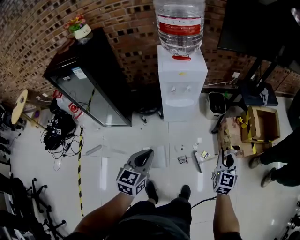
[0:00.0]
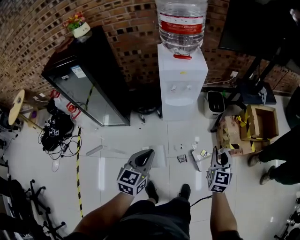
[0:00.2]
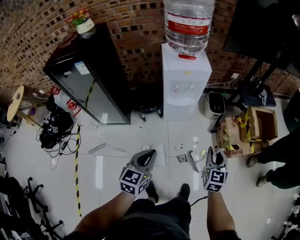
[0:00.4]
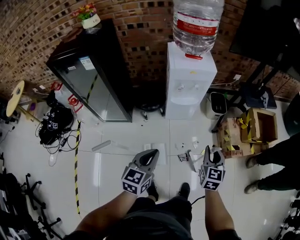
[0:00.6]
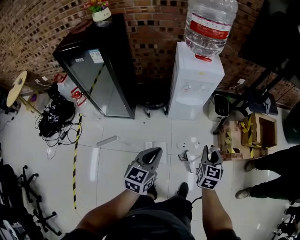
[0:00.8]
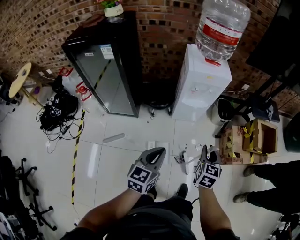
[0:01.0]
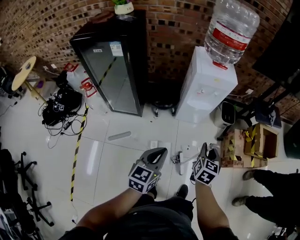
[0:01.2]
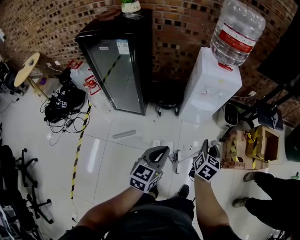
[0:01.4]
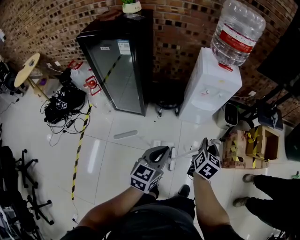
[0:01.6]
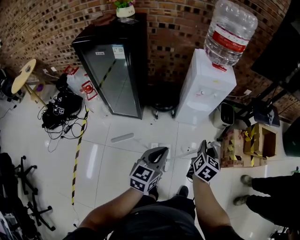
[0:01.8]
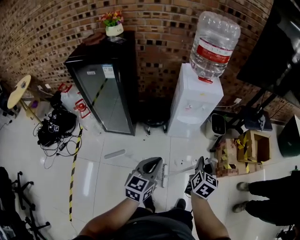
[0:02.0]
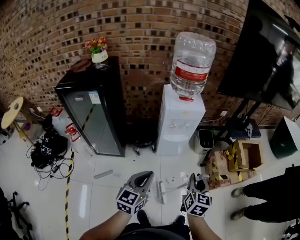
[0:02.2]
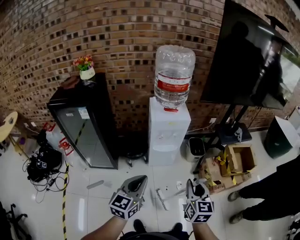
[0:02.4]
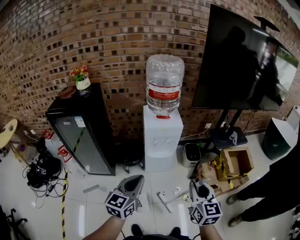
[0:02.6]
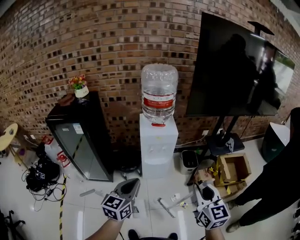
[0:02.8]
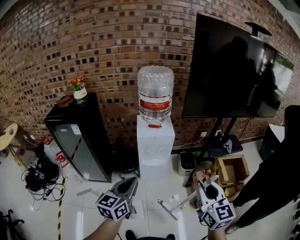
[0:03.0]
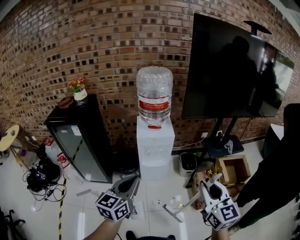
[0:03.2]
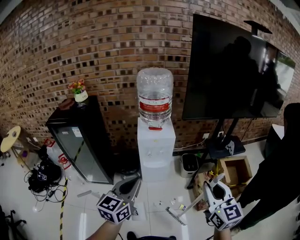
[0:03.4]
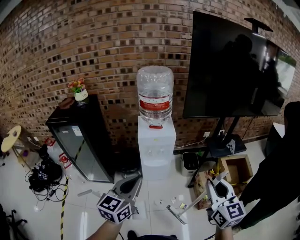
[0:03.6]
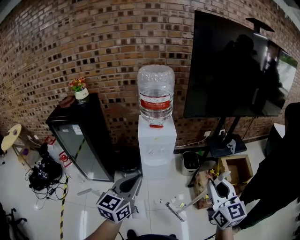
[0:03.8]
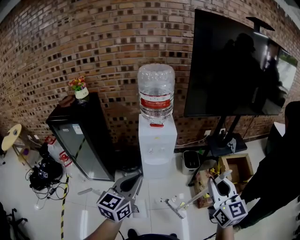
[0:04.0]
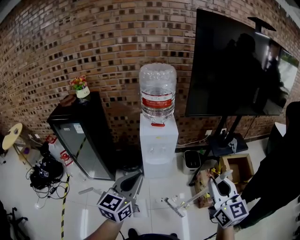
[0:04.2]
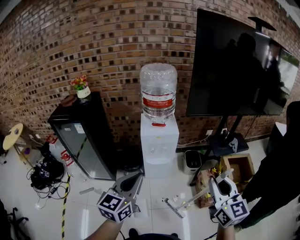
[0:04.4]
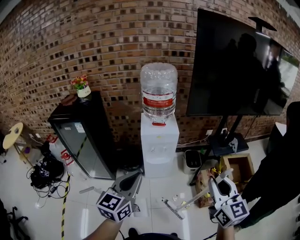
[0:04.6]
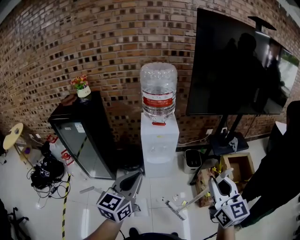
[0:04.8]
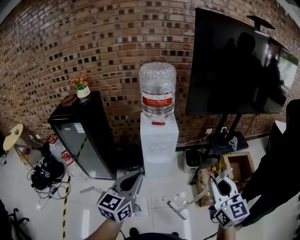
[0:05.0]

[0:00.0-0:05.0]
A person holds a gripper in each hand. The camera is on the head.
0:00.0 to 0:01.6: The right gripper shifts some 30 cm to the left, and rotates about 20 degrees; the left gripper is displaced to the left and backward by roughly 15 cm.
0:01.6 to 0:03.4: Both grippers move upward and to the right, roughly 40 cm. The right gripper swivels approximately 40 degrees.
0:03.4 to 0:05.0: There are only small adjustments of the grippers.

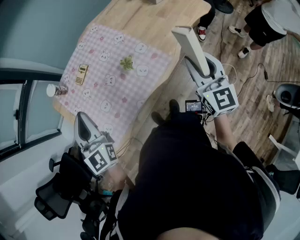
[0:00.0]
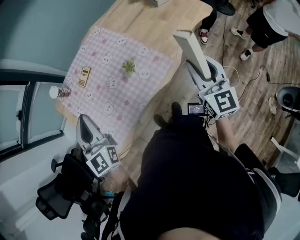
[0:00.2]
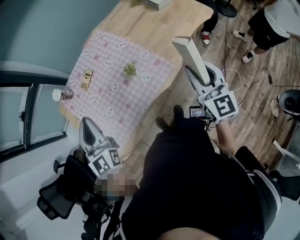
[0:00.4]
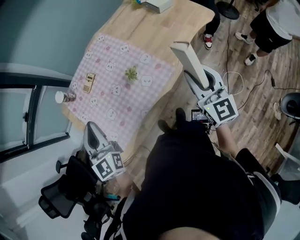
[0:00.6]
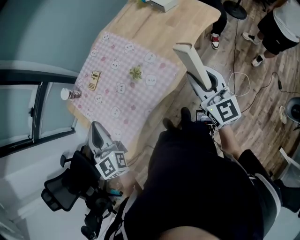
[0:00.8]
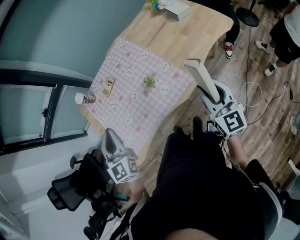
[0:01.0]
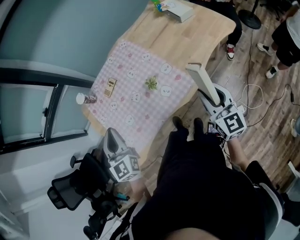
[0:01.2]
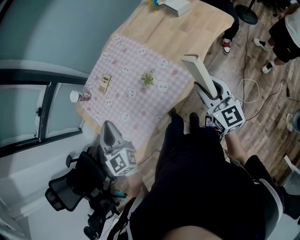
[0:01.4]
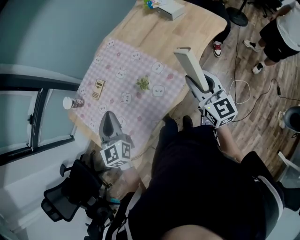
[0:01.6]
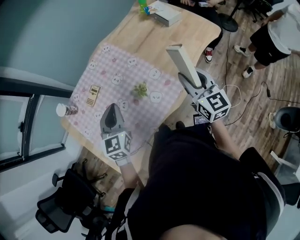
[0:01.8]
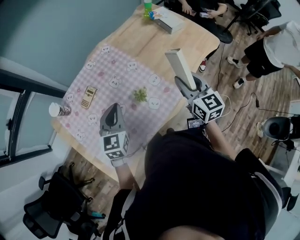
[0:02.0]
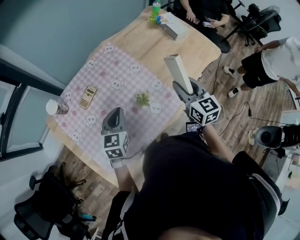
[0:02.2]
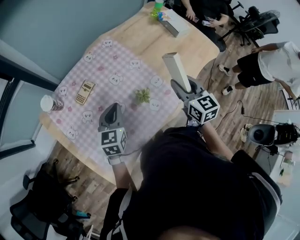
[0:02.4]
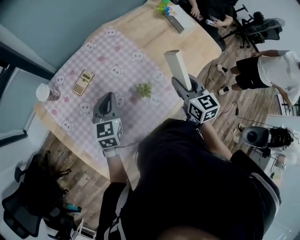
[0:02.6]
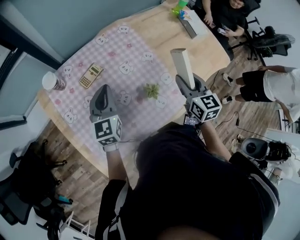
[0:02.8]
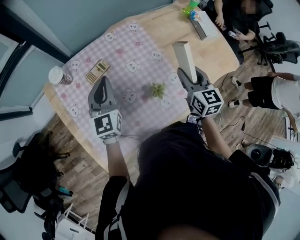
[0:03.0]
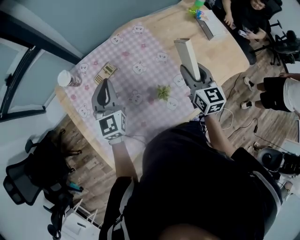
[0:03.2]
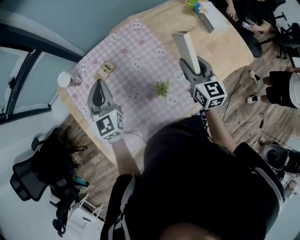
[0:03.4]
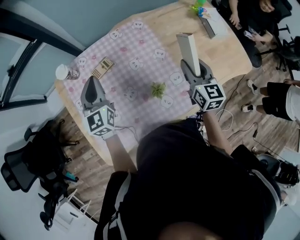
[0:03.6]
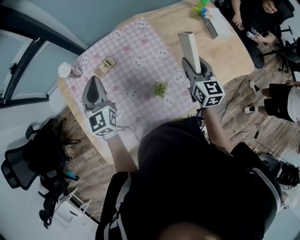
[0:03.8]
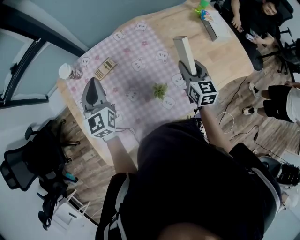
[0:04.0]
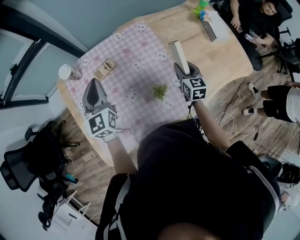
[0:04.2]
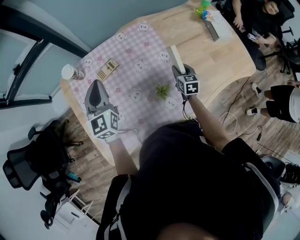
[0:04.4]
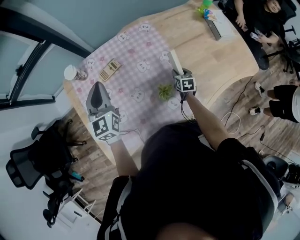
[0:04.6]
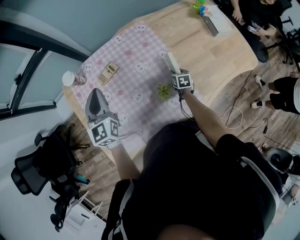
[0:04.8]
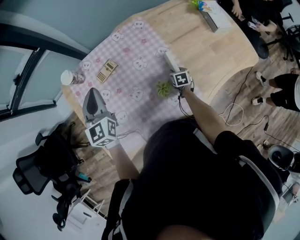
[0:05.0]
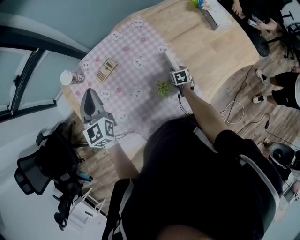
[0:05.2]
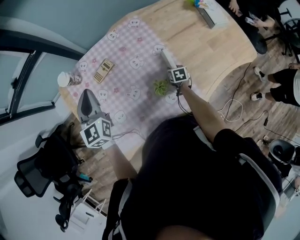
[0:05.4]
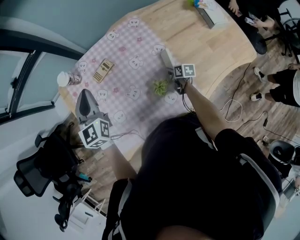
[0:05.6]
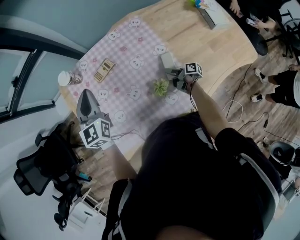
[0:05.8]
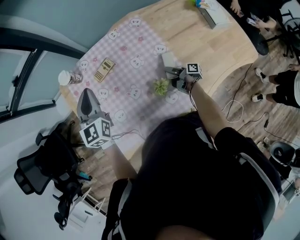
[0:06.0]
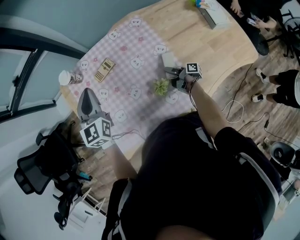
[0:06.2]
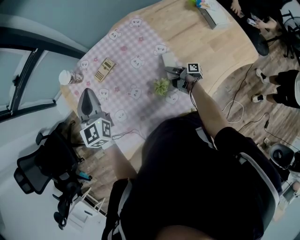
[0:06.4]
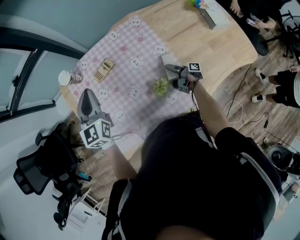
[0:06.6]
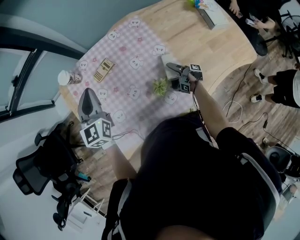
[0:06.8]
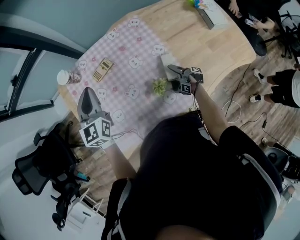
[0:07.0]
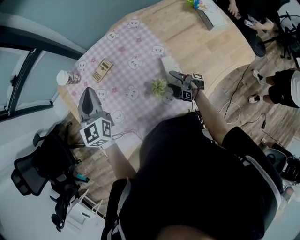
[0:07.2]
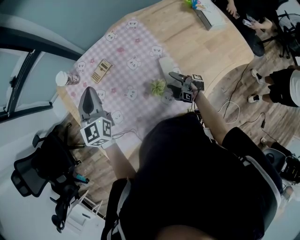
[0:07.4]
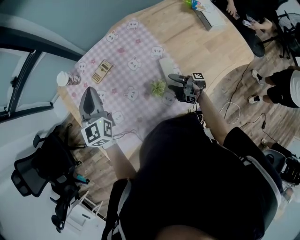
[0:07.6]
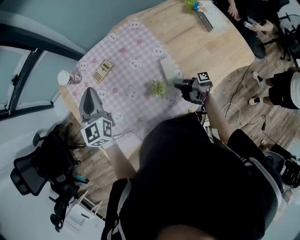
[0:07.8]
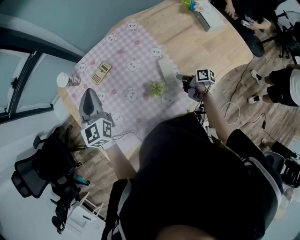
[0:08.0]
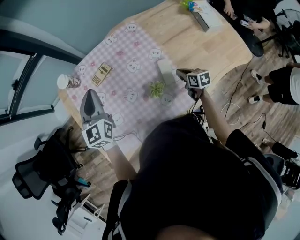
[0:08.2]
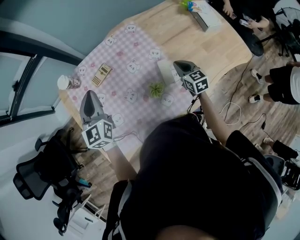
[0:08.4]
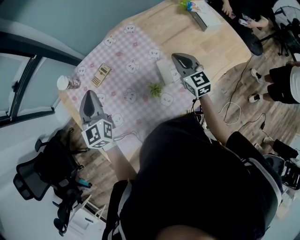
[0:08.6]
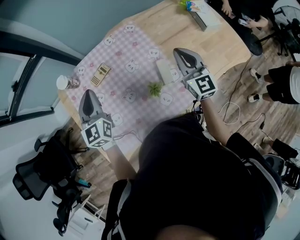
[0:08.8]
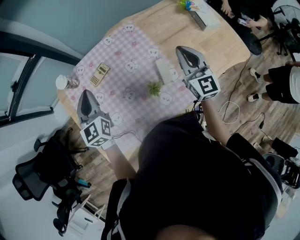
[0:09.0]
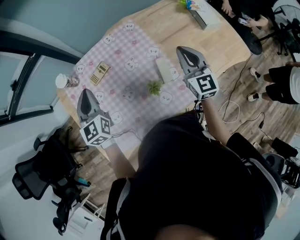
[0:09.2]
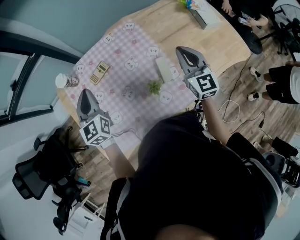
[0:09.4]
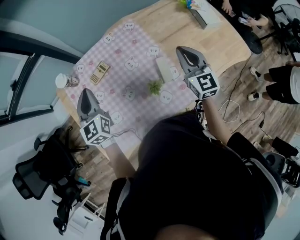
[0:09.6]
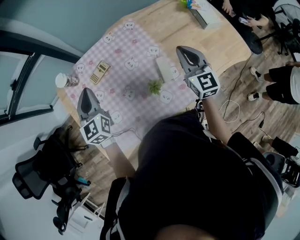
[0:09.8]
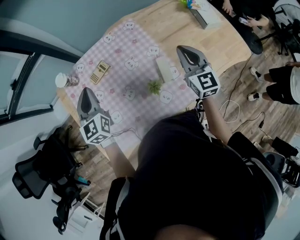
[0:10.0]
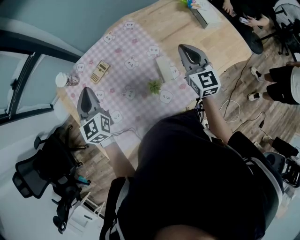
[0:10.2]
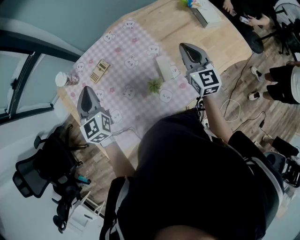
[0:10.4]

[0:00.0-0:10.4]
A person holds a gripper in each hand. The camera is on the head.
0:00.0 to 0:01.4: The right gripper moves about 5 cm. The left gripper changes place by approximately 5 cm.
0:01.4 to 0:03.0: The grippers both shift forward and to the left by approximately 30 cm.
0:03.0 to 0:04.4: The right gripper goes roughly 20 cm downward.
0:04.4 to 0:06.0: The right gripper moves downward, some 10 cm, and twists some 70 degrees clockwise, seen from behind.
0:06.0 to 0:07.4: The right gripper travels backward by roughly 5 cm, turns by roughly 30 degrees, and opens its fingers.
0:07.4 to 0:09.0: The right gripper shifts roughly 35 cm upward, twists roughly 130 degrees counterclockwise, seen from behind, and closes its fingers.
0:09.0 to 0:10.4: The grippers move only a little.

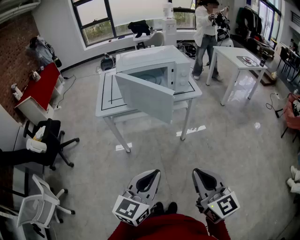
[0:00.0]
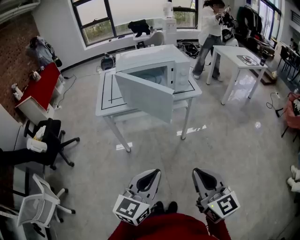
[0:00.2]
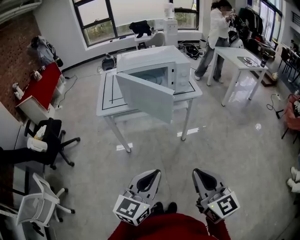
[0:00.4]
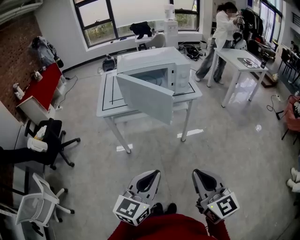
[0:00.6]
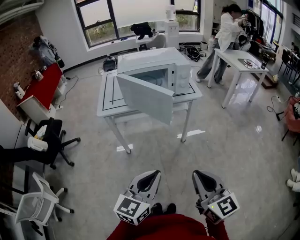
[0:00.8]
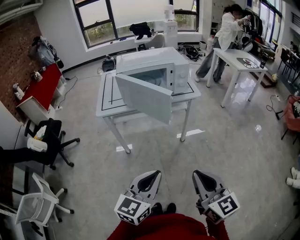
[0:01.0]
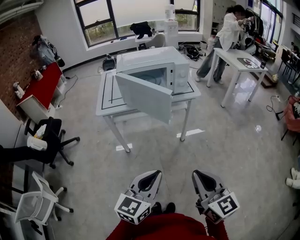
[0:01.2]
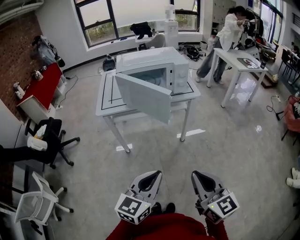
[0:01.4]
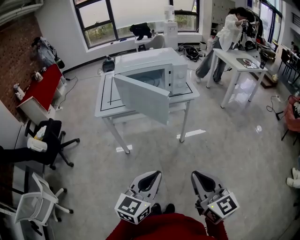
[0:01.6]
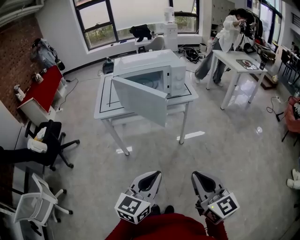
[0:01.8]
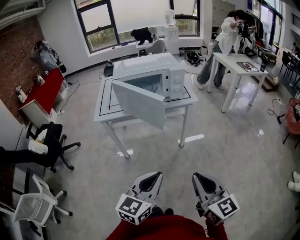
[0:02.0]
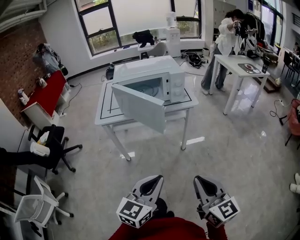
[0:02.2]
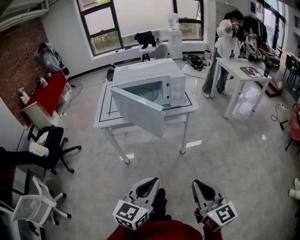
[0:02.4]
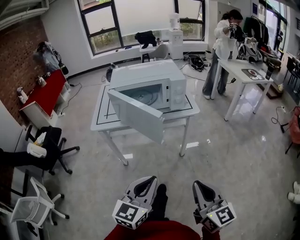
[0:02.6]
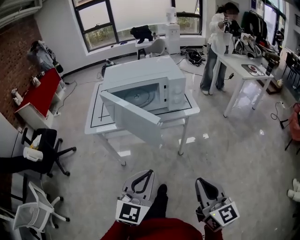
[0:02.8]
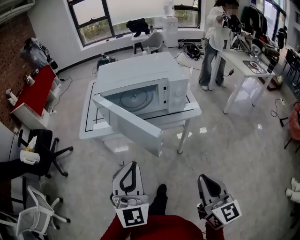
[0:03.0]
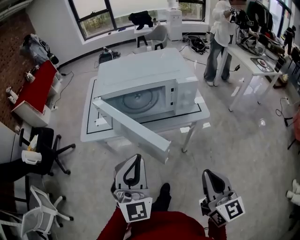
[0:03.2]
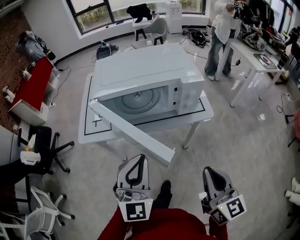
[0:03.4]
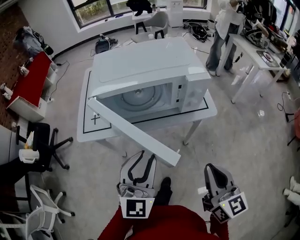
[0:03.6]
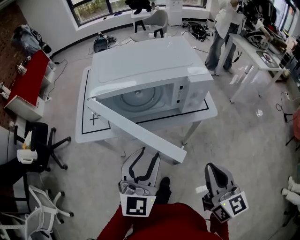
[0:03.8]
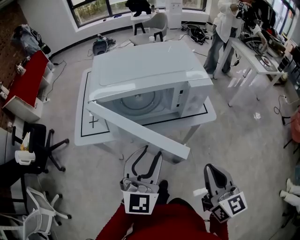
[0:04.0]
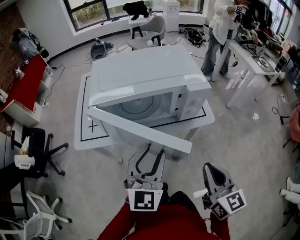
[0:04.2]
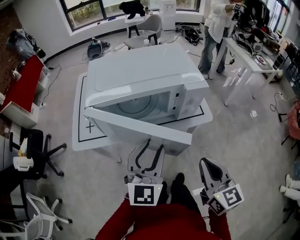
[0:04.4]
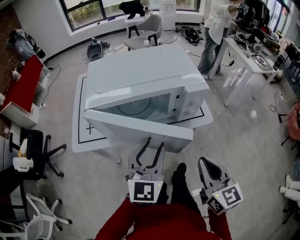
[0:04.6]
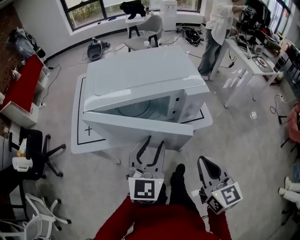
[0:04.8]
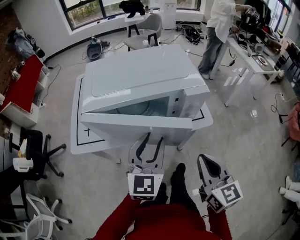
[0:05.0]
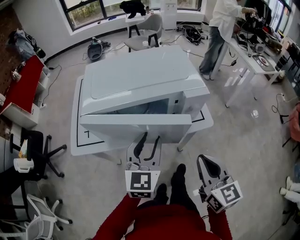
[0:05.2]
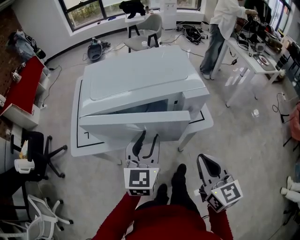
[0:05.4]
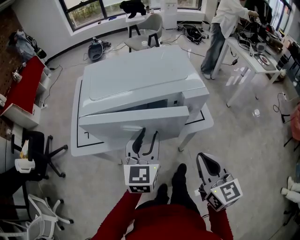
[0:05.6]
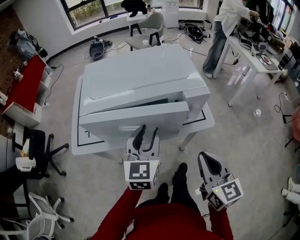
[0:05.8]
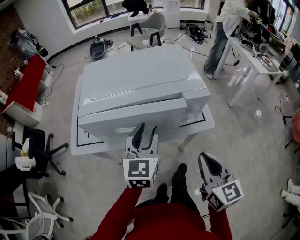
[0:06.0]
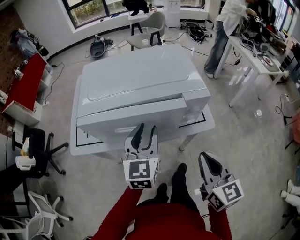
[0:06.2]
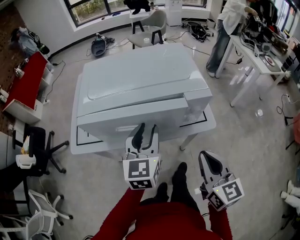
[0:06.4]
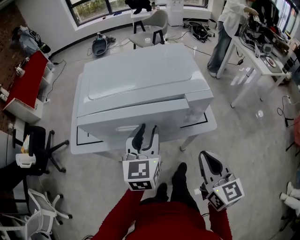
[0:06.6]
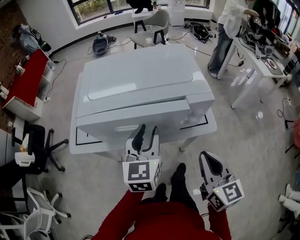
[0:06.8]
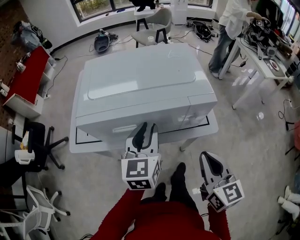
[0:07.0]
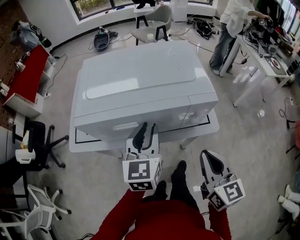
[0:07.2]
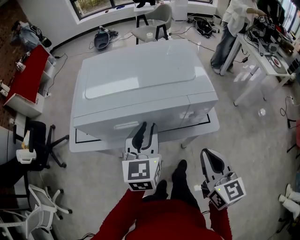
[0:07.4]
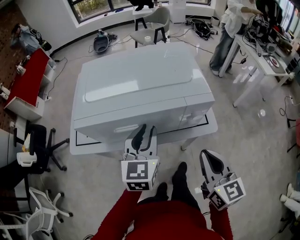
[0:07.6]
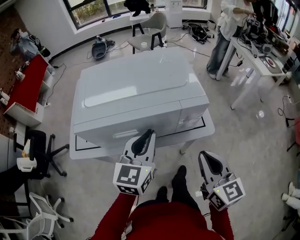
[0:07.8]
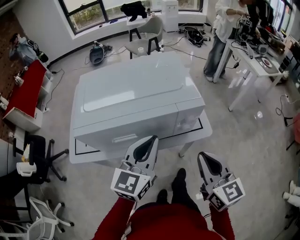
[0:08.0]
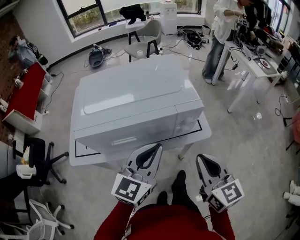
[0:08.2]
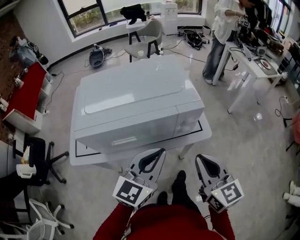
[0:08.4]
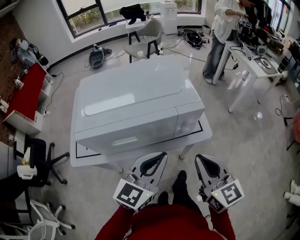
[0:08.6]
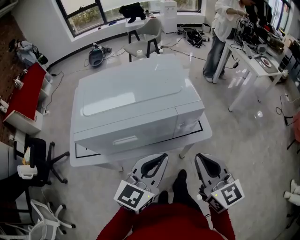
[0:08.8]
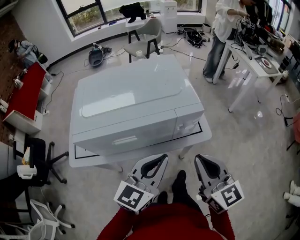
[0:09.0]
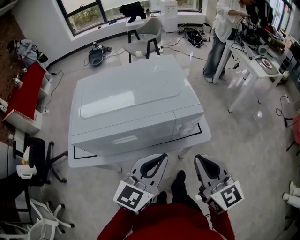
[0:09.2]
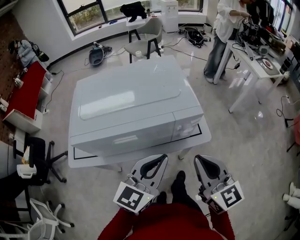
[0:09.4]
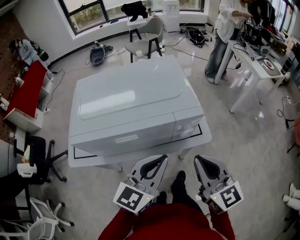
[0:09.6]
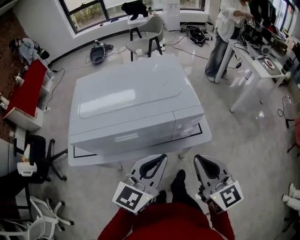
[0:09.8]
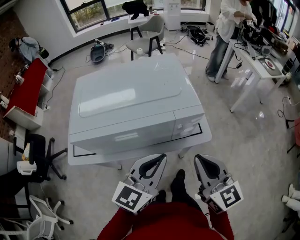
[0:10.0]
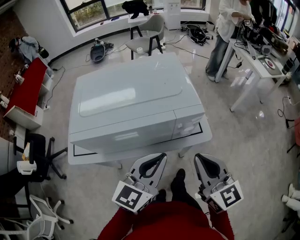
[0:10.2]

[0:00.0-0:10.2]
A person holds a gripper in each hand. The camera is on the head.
0:00.0 to 0:01.4: The grippers make only small movements.
0:01.4 to 0:03.0: The left gripper goes approximately 20 cm forward, and rolls clockwise, seen from behind, by about 40 degrees. Meanwhile the right gripper is displaced forward and to the right by some 15 cm.
0:03.0 to 0:04.4: The two grippers go about 15 cm forward. The left gripper swivels roughly 20 degrees, and opens its fingers.
0:04.4 to 0:05.8: The left gripper shifts some 10 cm forward, and turns by about 20 degrees.
0:05.8 to 0:07.2: The grippers stay close to where they were, moving slightly.
0:07.2 to 0:08.8: The left gripper shifts some 10 cm backward and to the right, turns by approximately 30 degrees, and closes up.
0:08.8 to 0:10.2: There are only small adjustments of the grippers.
